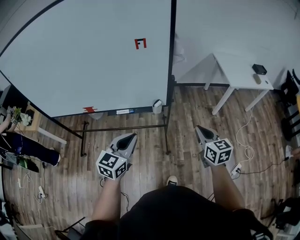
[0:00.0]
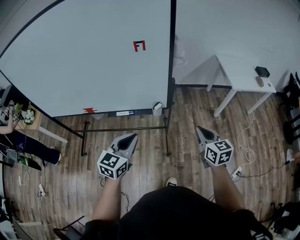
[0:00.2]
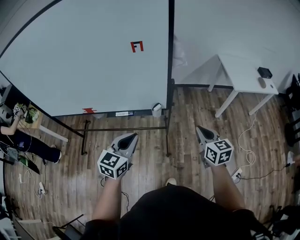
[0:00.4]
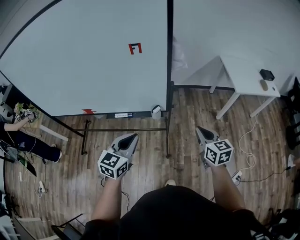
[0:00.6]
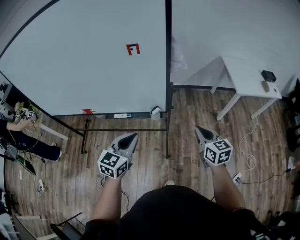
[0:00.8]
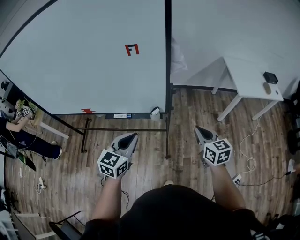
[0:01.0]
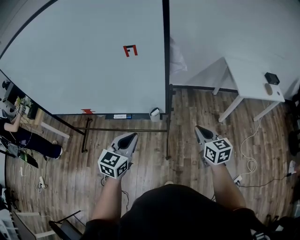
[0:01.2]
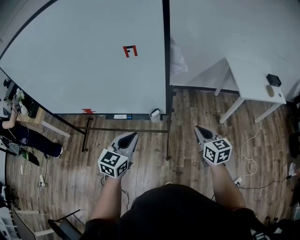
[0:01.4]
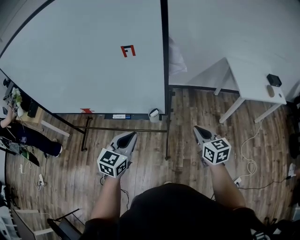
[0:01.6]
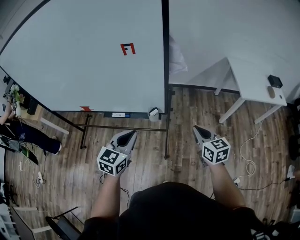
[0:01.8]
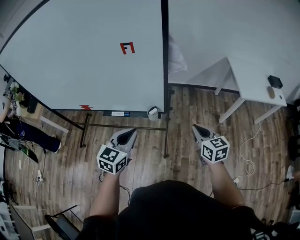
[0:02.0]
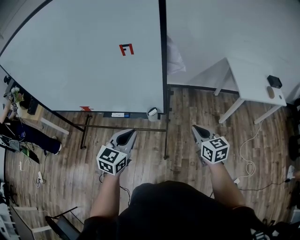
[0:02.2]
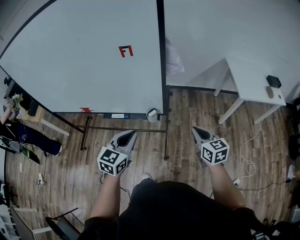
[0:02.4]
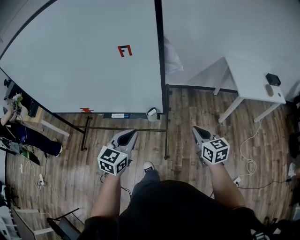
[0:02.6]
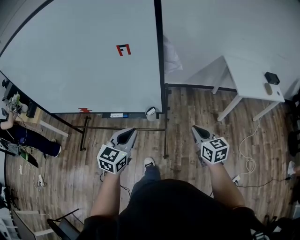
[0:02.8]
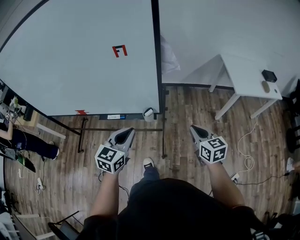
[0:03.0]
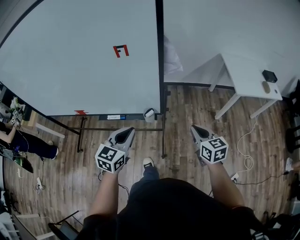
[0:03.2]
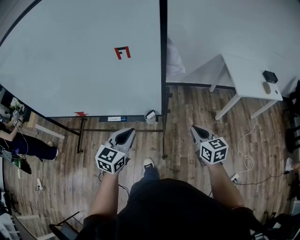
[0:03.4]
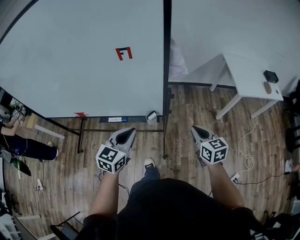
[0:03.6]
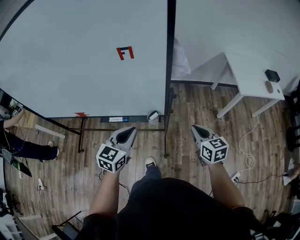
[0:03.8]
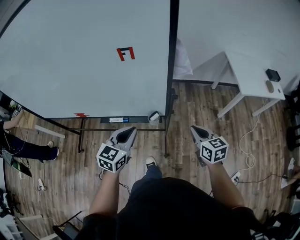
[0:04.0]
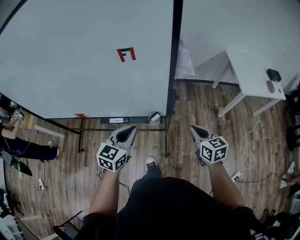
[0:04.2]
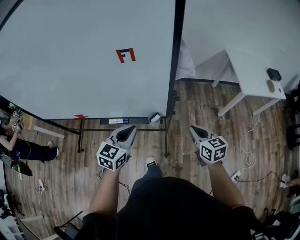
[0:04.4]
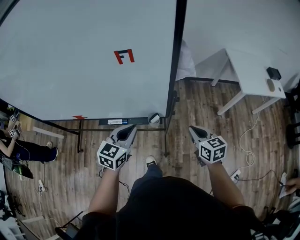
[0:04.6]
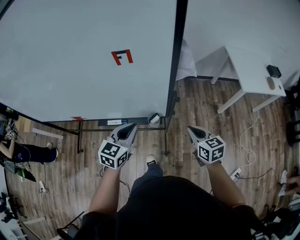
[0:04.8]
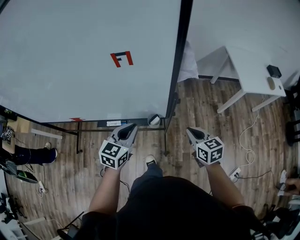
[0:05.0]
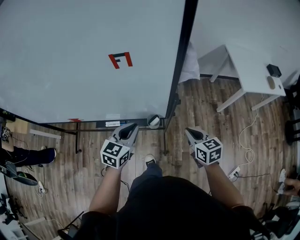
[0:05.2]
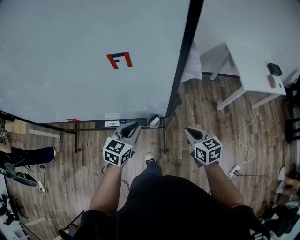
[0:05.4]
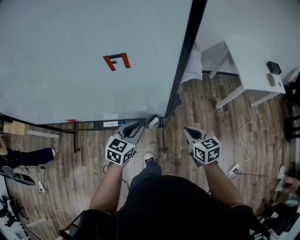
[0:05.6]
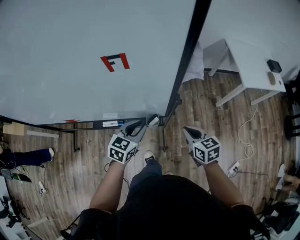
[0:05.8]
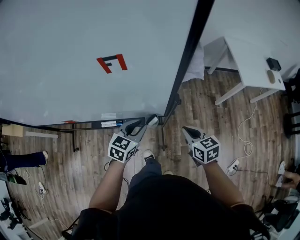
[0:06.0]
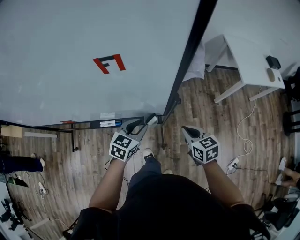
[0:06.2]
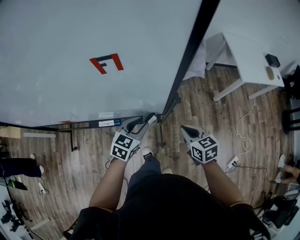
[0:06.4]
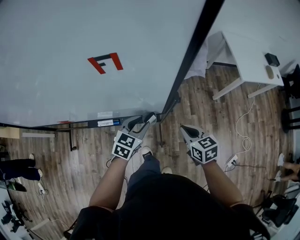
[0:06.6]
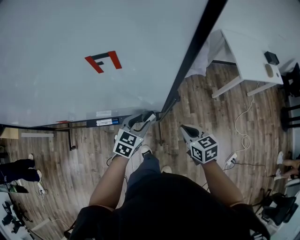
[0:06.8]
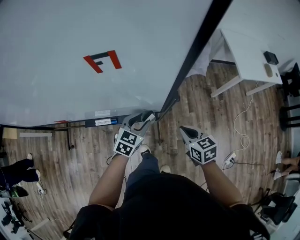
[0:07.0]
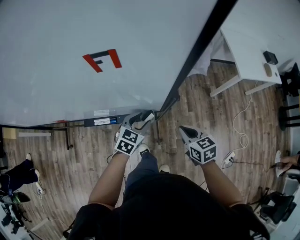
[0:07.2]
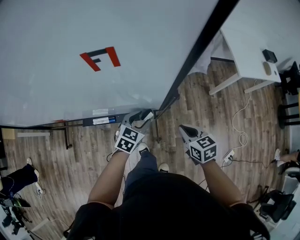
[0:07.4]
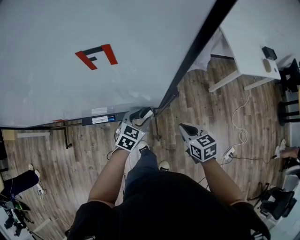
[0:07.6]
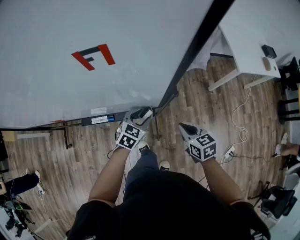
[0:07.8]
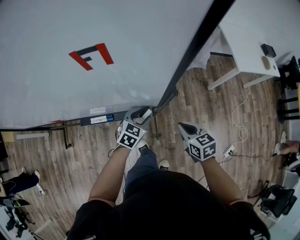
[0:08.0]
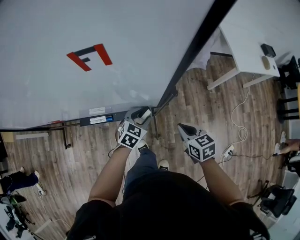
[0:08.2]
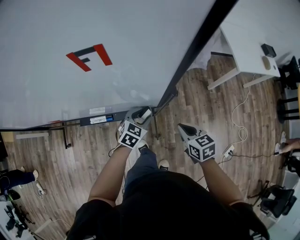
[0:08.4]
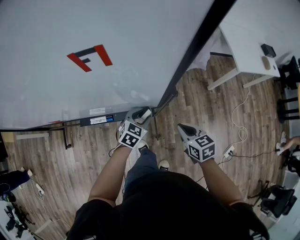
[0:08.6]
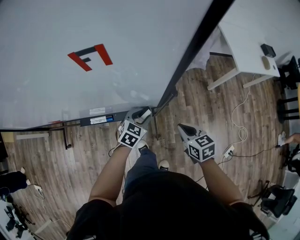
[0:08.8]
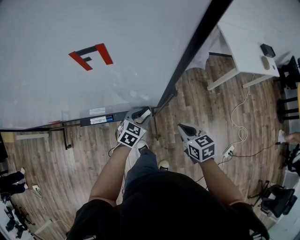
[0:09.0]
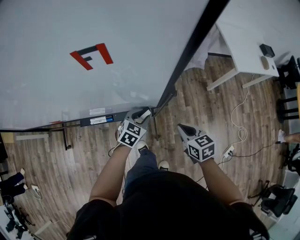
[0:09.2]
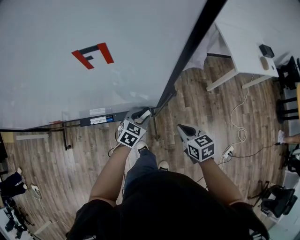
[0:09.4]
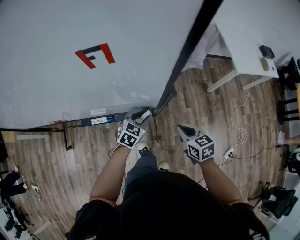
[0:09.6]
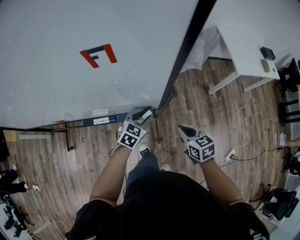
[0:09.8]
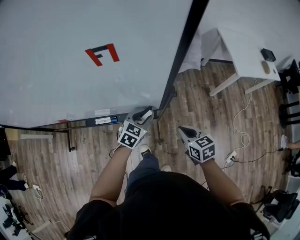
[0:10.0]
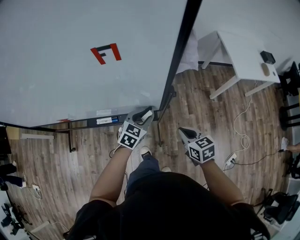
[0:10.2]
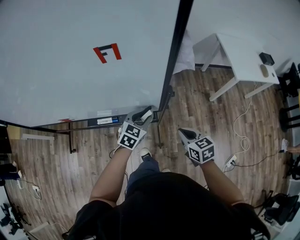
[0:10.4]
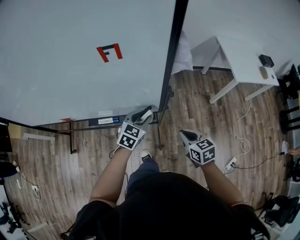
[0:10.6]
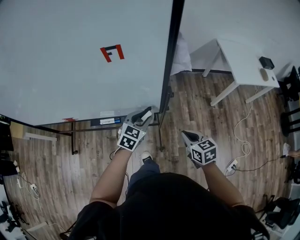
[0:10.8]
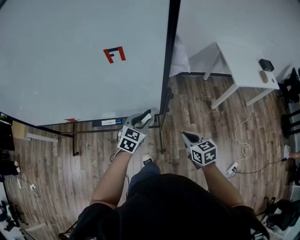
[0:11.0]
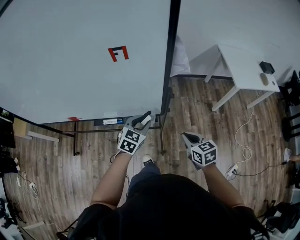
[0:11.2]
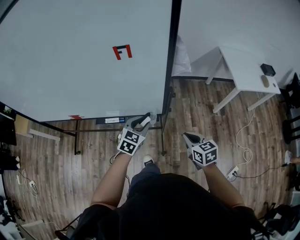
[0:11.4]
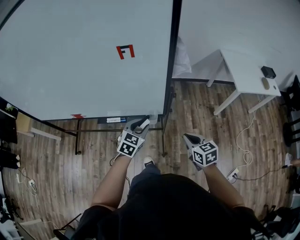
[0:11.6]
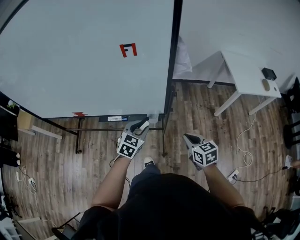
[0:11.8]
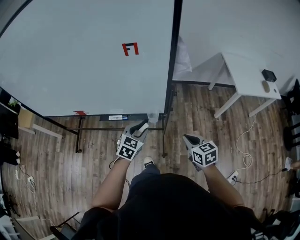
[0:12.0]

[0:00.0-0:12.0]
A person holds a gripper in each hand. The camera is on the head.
0:00.0 to 0:01.6: The left gripper goes about 10 cm forward and to the right, while the right gripper shifts about 10 cm forward.
0:01.6 to 0:03.0: The grippers make only small movements.
0:03.0 to 0:04.4: The right gripper shifts about 10 cm forward and to the left; the left gripper travels forward by some 10 cm.
0:04.4 to 0:06.0: The left gripper goes some 15 cm downward and forward, while the right gripper shifts approximately 5 cm downward.
0:06.0 to 0:07.6: The left gripper goes some 10 cm downward, and opens.
0:07.6 to 0:09.0: The grippers stay close to where they were, moving slightly.
0:09.0 to 0:10.4: The left gripper shifts roughly 10 cm upward.
0:10.4 to 0:12.0: The left gripper travels backward by roughly 10 cm. Meanwhile the right gripper moves backward, about 5 cm.

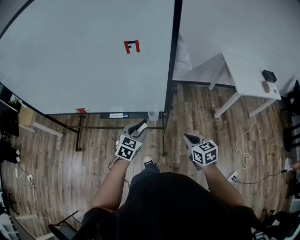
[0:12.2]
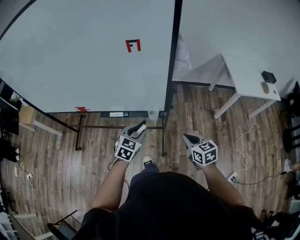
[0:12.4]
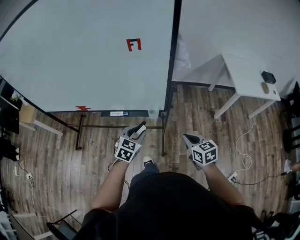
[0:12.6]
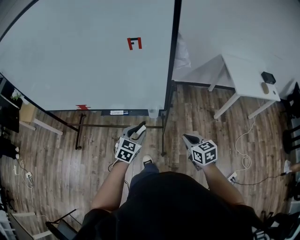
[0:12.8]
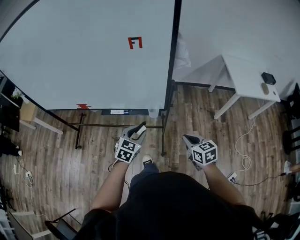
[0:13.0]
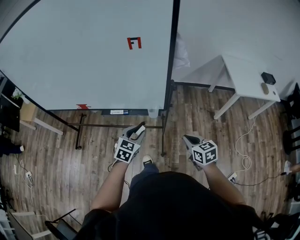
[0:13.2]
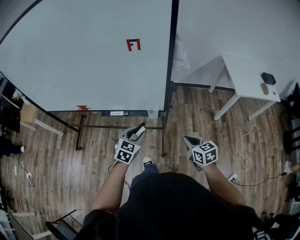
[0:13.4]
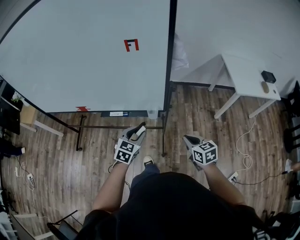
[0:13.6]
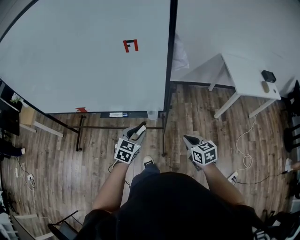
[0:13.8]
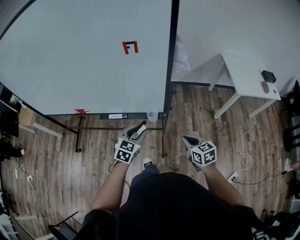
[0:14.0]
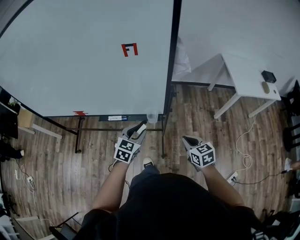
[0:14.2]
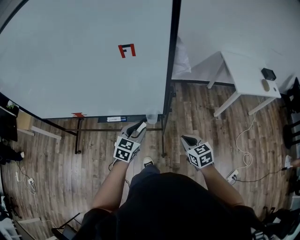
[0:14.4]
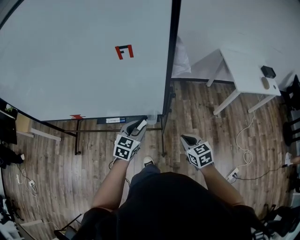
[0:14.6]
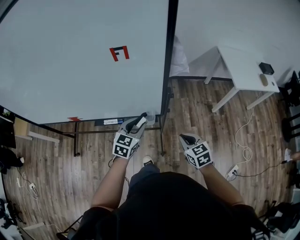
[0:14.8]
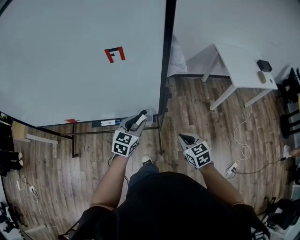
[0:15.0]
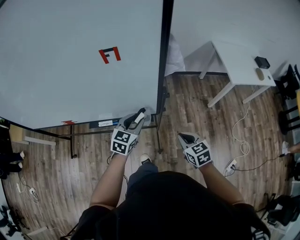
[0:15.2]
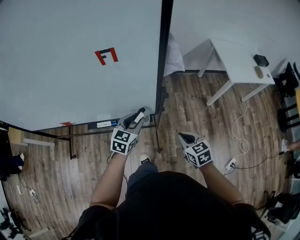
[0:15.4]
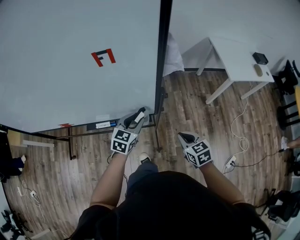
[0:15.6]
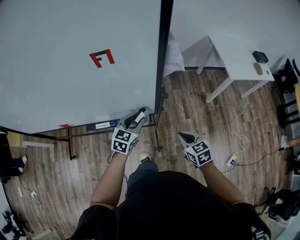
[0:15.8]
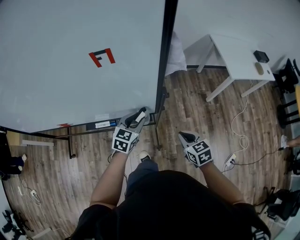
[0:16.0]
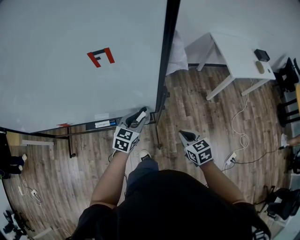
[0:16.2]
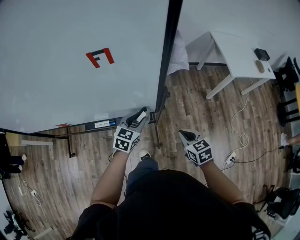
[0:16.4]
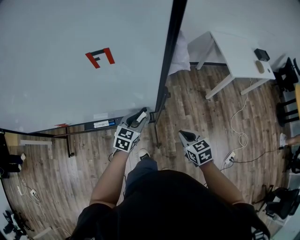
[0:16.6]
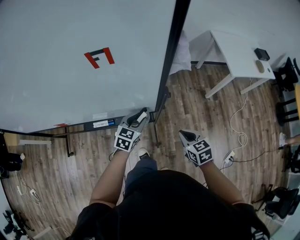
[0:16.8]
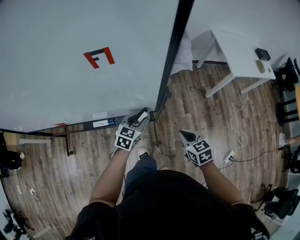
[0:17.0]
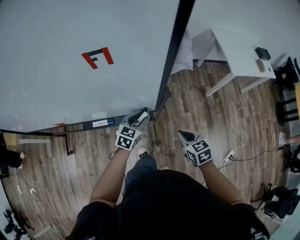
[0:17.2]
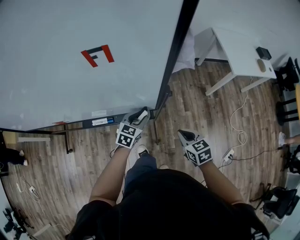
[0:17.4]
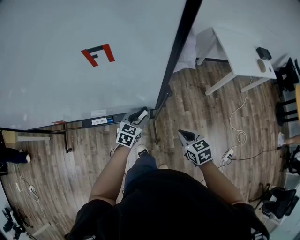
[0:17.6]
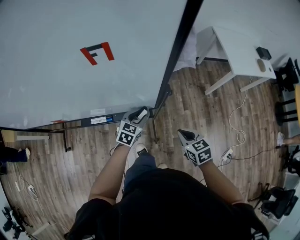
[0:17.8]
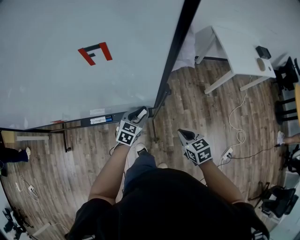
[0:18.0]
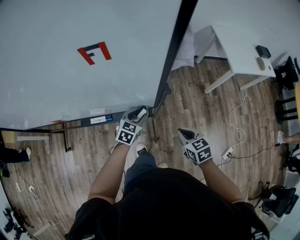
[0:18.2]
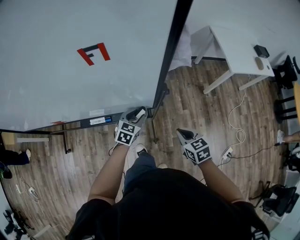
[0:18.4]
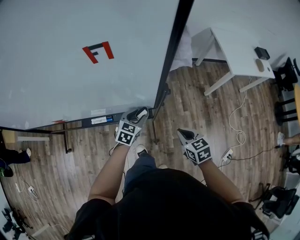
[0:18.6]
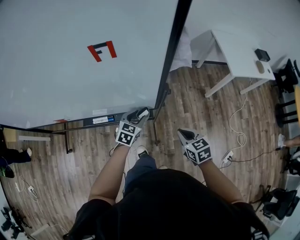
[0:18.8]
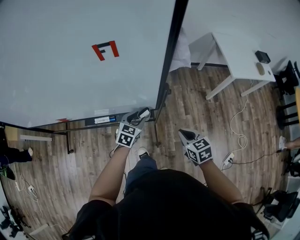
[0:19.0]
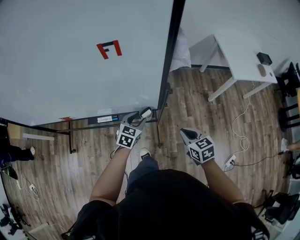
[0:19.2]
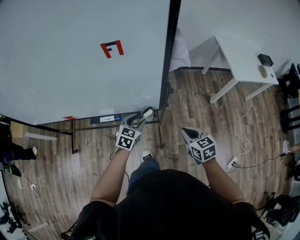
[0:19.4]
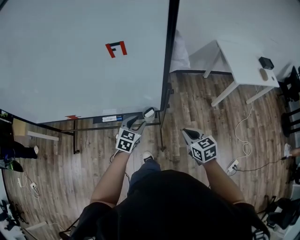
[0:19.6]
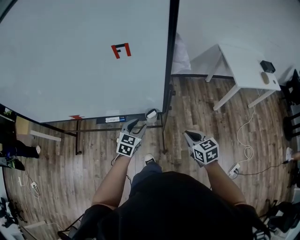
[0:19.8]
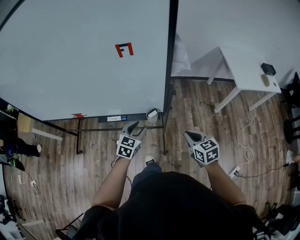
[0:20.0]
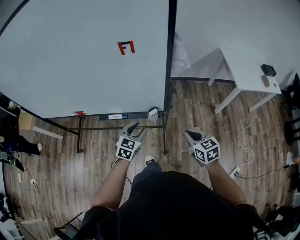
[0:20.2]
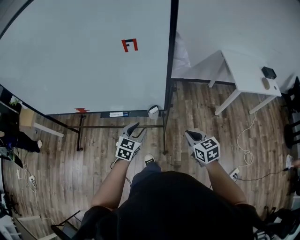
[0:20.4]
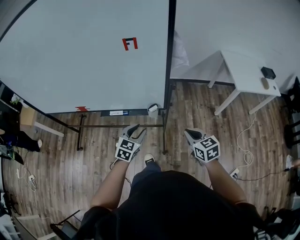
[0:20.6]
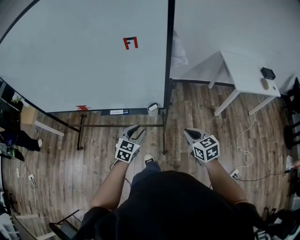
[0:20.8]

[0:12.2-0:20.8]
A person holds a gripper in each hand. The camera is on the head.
0:12.2 to 0:13.6: The grippers stay close to where they were, moving slightly.
0:13.6 to 0:15.0: The right gripper moves forward, about 5 cm, while the left gripper shifts some 10 cm forward.
0:15.0 to 0:16.6: The left gripper heads downward, covering approximately 5 cm.
0:16.6 to 0:18.0: The left gripper moves downward, approximately 5 cm.
0:18.0 to 0:19.4: The left gripper shifts approximately 5 cm upward.
0:19.4 to 0:20.8: The left gripper is displaced backward and upward by roughly 15 cm, while the right gripper is displaced backward and upward by some 10 cm.

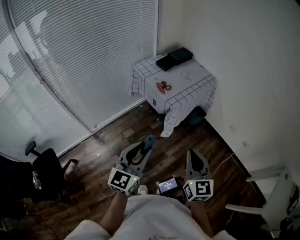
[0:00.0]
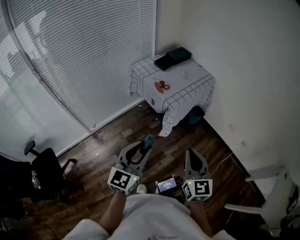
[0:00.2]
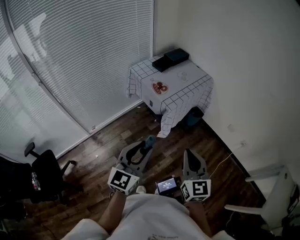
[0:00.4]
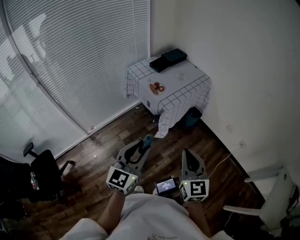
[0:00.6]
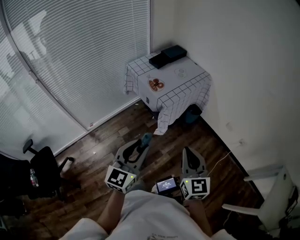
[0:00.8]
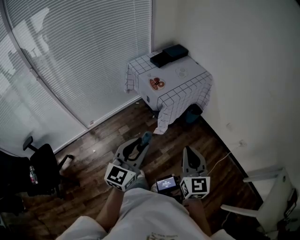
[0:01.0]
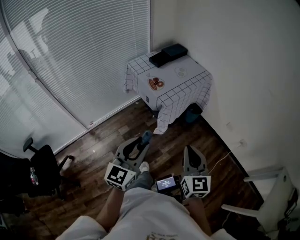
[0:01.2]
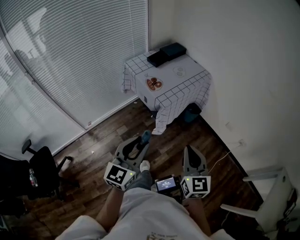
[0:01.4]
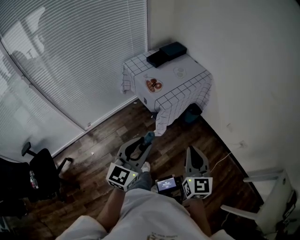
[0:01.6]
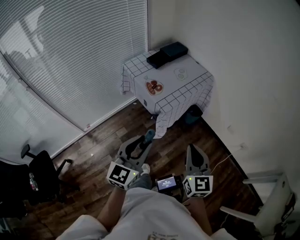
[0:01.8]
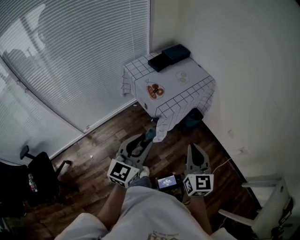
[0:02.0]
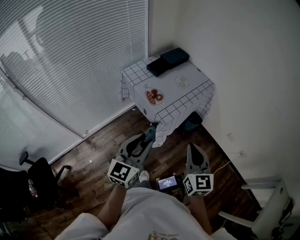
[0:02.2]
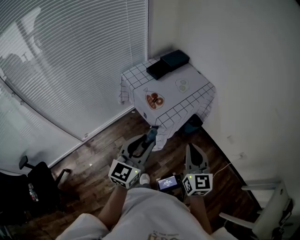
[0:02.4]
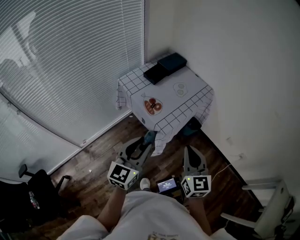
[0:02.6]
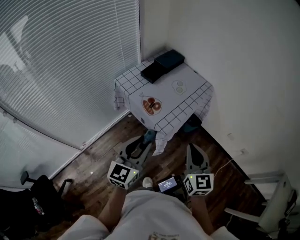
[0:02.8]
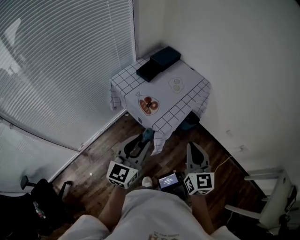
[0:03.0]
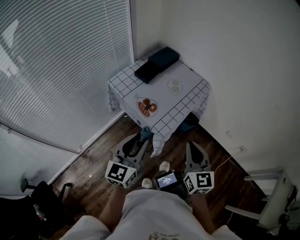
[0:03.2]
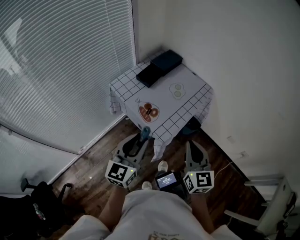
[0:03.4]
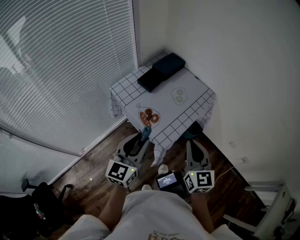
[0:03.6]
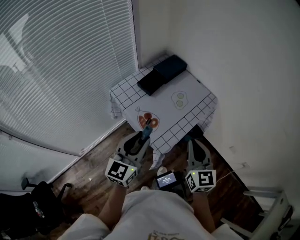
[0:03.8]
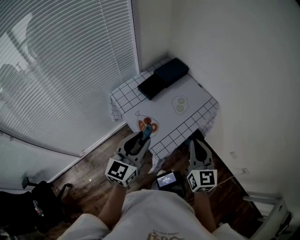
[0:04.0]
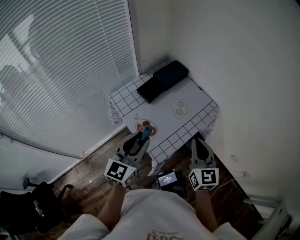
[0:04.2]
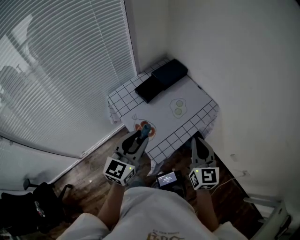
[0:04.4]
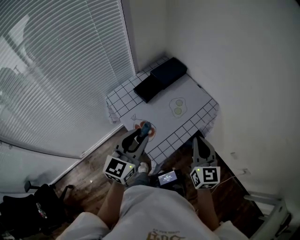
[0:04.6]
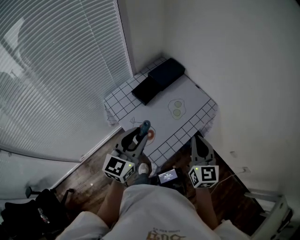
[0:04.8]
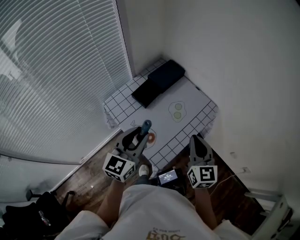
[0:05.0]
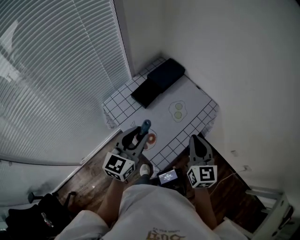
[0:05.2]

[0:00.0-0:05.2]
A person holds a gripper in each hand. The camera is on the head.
0:00.0 to 0:01.8: Both grippers move forward and to the right, some 15 cm.
0:01.8 to 0:03.4: Both grippers travel together forward, some 20 cm.
0:03.4 to 0:05.2: The two grippers go about 25 cm forward.
